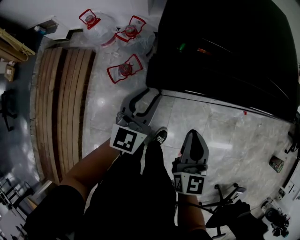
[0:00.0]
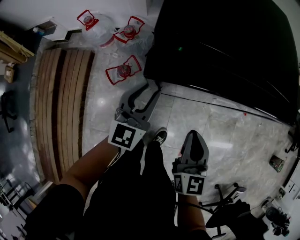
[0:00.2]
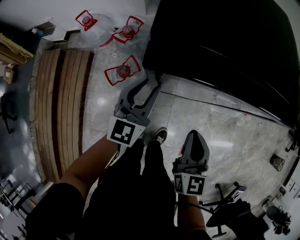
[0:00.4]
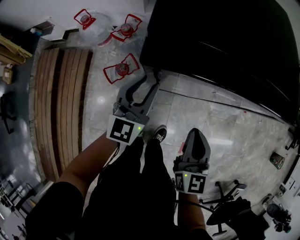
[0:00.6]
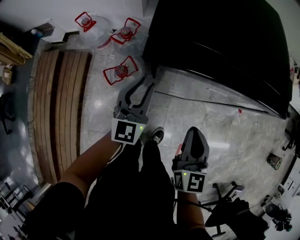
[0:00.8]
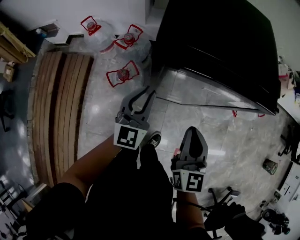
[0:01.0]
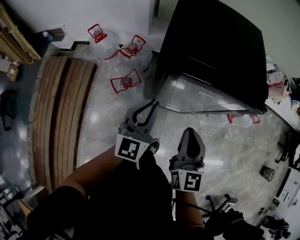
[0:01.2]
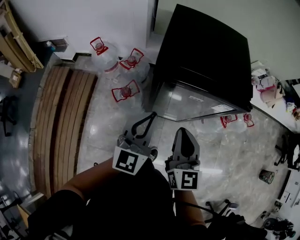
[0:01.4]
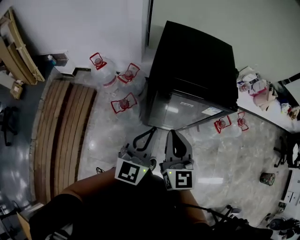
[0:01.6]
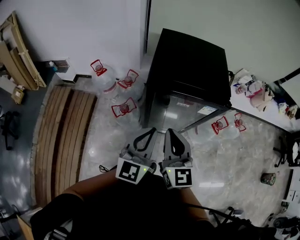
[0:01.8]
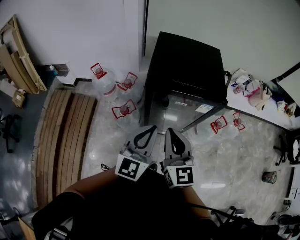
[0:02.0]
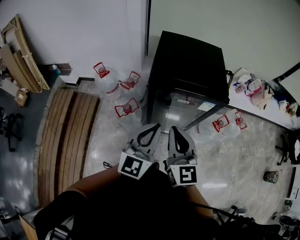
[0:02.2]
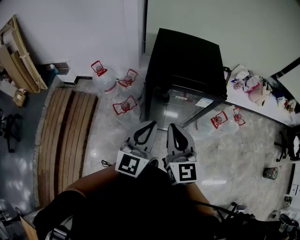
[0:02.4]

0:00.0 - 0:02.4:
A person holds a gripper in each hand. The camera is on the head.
0:00.0 - 0:01.2: The two grippers go approximately 10 cm upward.
0:01.2 - 0:02.4: The grippers both shift upward and backward by some 20 cm.

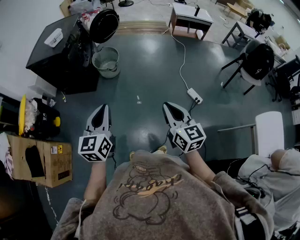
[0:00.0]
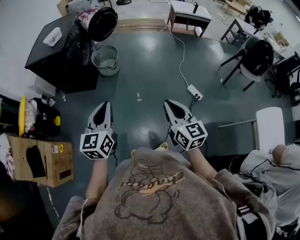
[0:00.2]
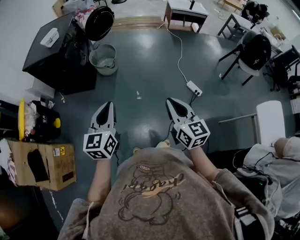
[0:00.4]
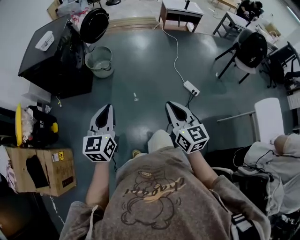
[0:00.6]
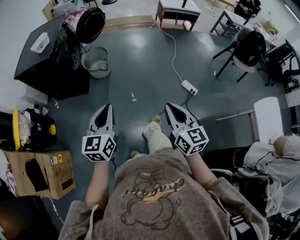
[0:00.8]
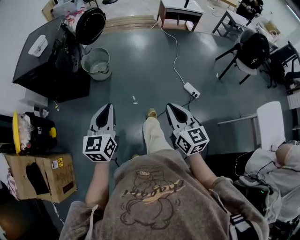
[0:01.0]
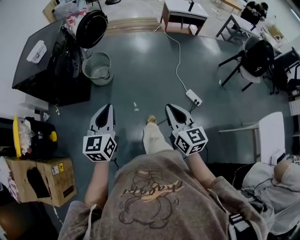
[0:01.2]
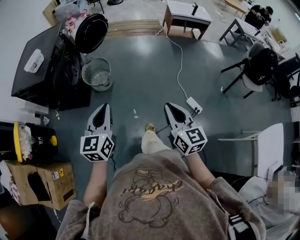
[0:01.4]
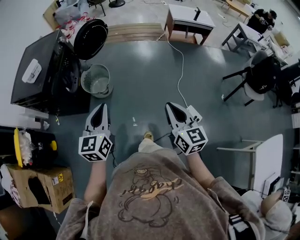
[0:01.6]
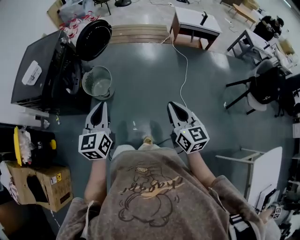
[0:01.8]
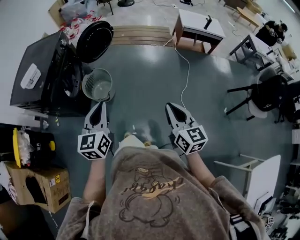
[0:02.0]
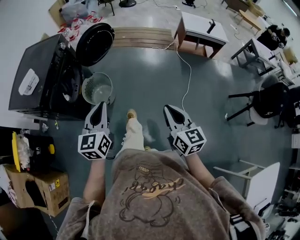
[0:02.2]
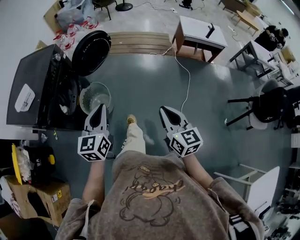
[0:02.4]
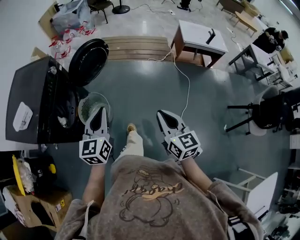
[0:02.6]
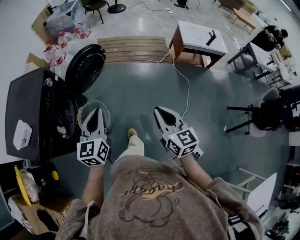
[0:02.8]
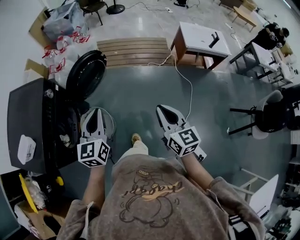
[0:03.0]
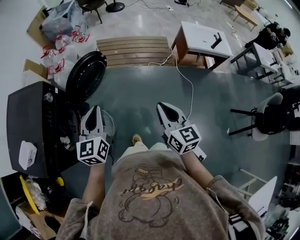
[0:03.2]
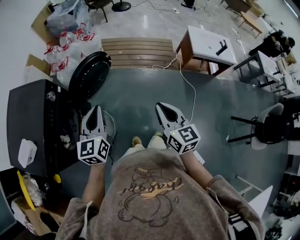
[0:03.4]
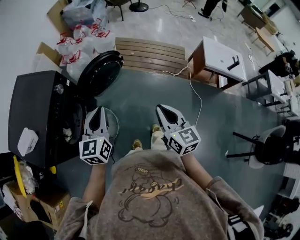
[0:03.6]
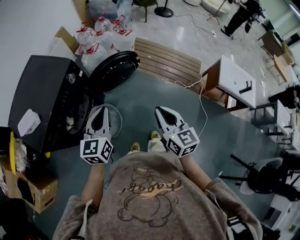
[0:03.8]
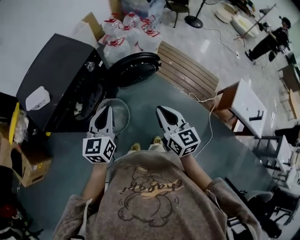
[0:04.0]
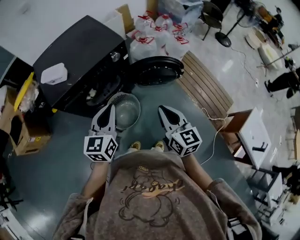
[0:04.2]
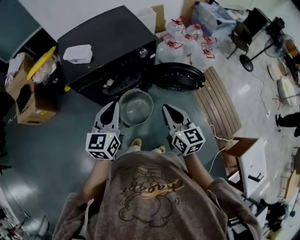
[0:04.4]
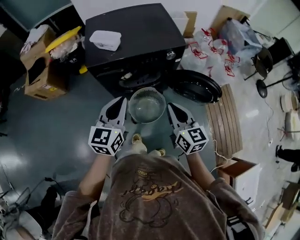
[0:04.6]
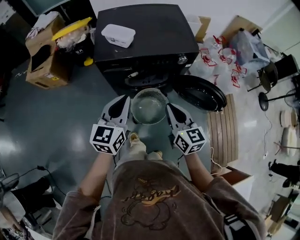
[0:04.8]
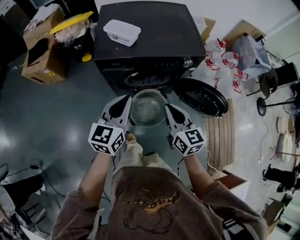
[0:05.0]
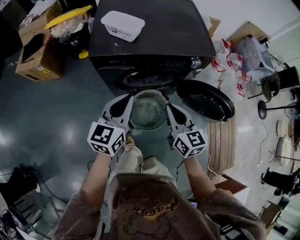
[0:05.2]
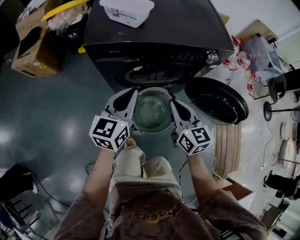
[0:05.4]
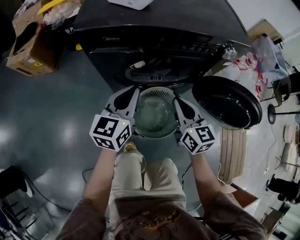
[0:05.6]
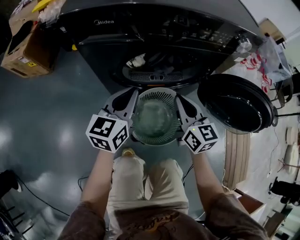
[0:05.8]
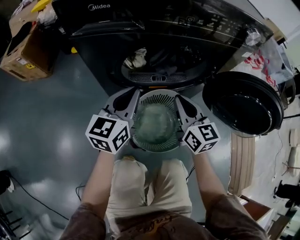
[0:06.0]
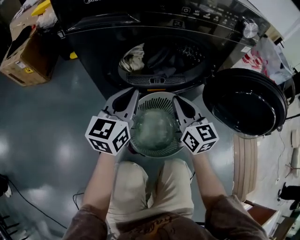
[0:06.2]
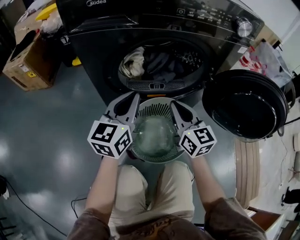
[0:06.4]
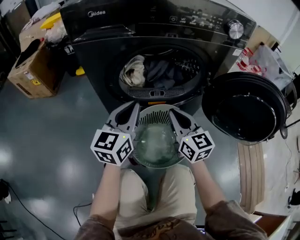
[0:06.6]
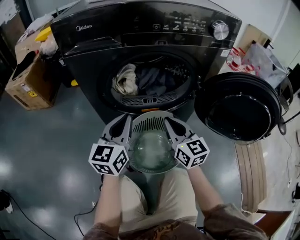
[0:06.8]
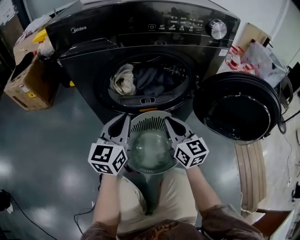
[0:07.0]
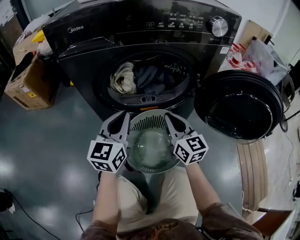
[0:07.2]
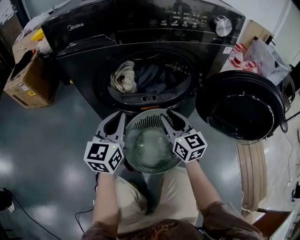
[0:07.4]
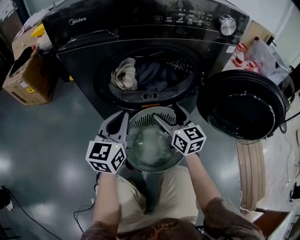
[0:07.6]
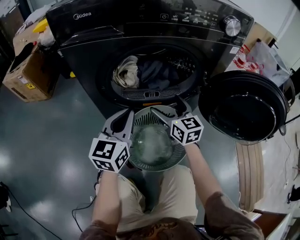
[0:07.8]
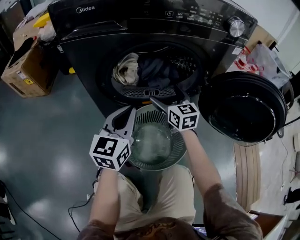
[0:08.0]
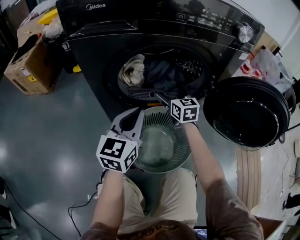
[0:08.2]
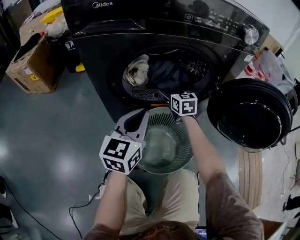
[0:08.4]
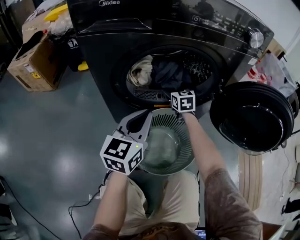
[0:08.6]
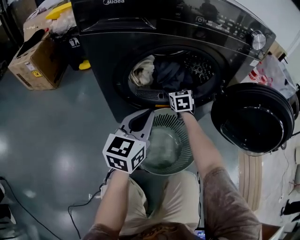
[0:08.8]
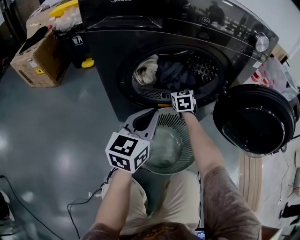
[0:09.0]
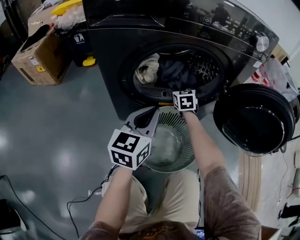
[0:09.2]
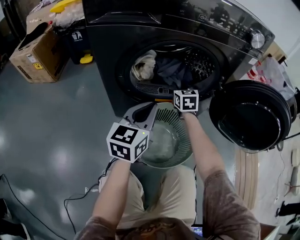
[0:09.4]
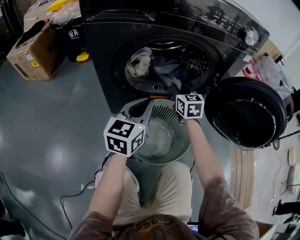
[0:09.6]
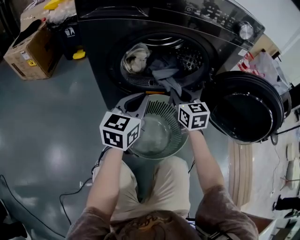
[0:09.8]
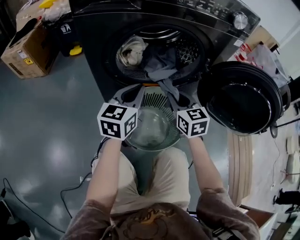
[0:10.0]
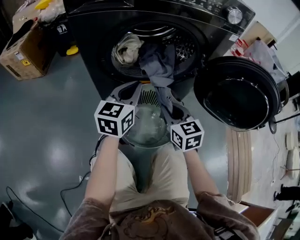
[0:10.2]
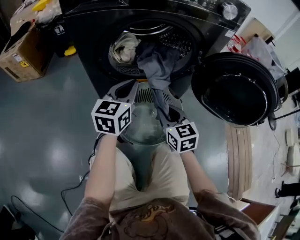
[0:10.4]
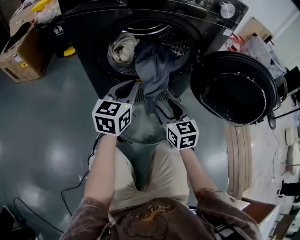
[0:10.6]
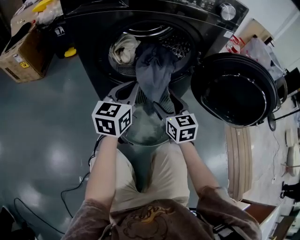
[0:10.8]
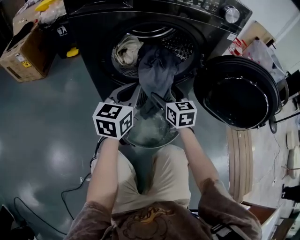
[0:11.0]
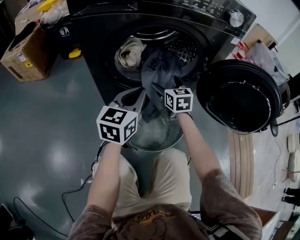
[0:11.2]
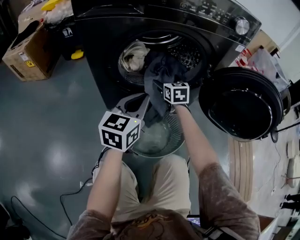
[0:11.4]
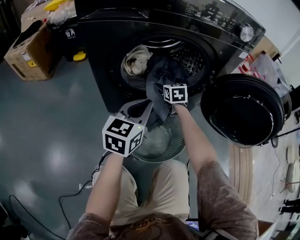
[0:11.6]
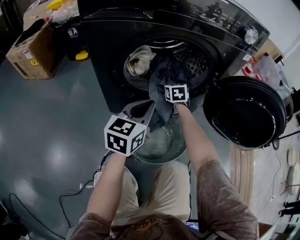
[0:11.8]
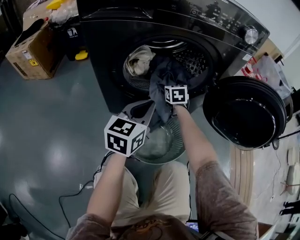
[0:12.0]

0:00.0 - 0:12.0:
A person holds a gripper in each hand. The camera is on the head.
0:00.0 - 0:01.6: The two grippers go about 30 cm forward.
0:01.6 - 0:03.0: Both grippers are carried forward, about 50 cm.
0:03.0 - 0:04.4: The left gripper changes place by some 15 cm, and changes its angle by some 60 degrees; the right gripper ends up about 30 cm from where it was, and changes its angle by roughly 60 degrees.
0:04.4 - 0:06.0: The right gripper goes approximately 50 cm downward and forward, and swivels about 20 degrees, while the left gripper moves downward, approximately 40 cm.
0:06.0 - 0:07.6: The grippers both shift downward by about 5 cm. The right gripper opens its fingers.
0:07.6 - 0:09.0: The right gripper goes approximately 20 cm forward and downward, rotates some 30 degrees, and closes its fingers.
0:09.0 - 0:10.4: The right gripper moves backward, about 30 cm.
0:10.4 - 0:12.0: The right gripper travels forward by some 25 cm, and opens up.

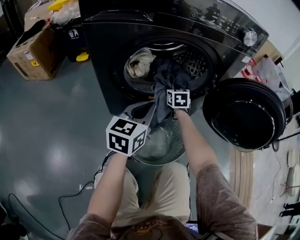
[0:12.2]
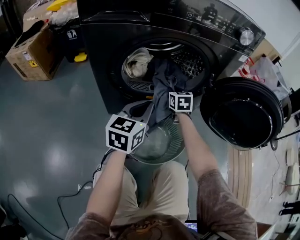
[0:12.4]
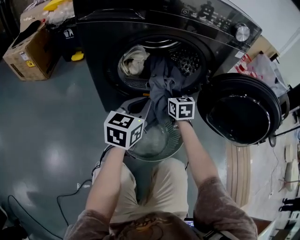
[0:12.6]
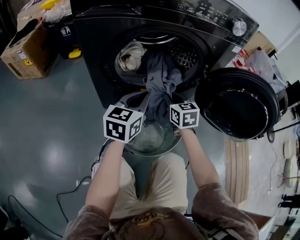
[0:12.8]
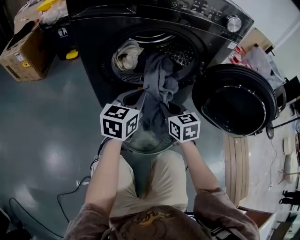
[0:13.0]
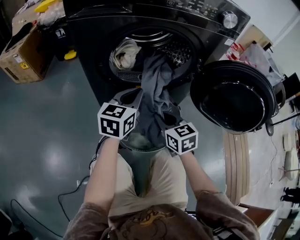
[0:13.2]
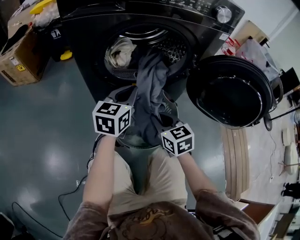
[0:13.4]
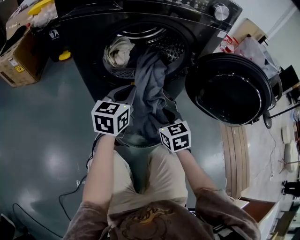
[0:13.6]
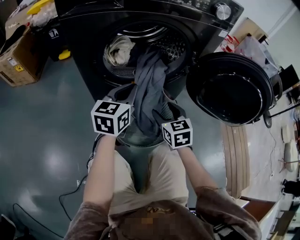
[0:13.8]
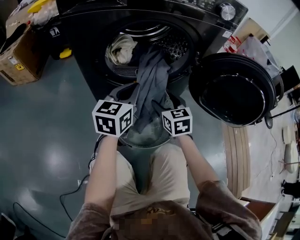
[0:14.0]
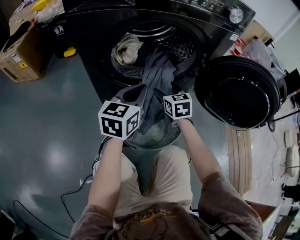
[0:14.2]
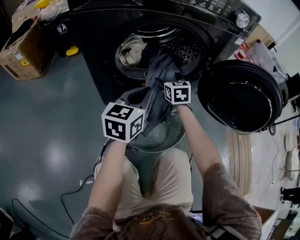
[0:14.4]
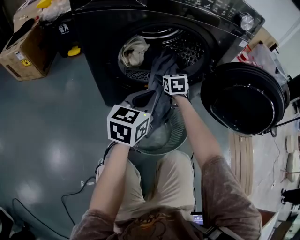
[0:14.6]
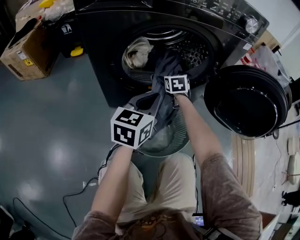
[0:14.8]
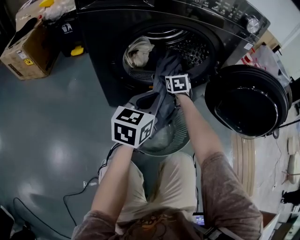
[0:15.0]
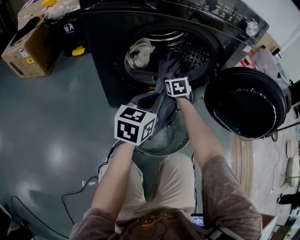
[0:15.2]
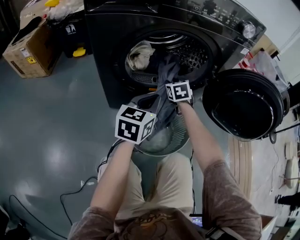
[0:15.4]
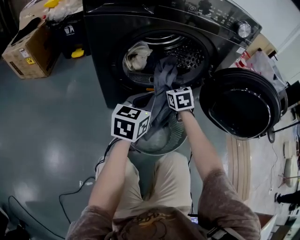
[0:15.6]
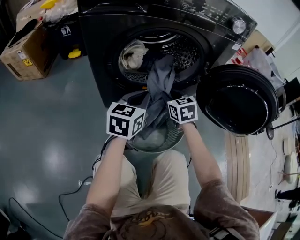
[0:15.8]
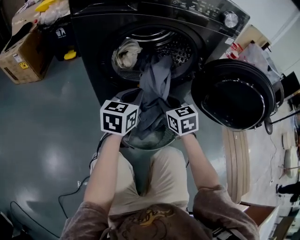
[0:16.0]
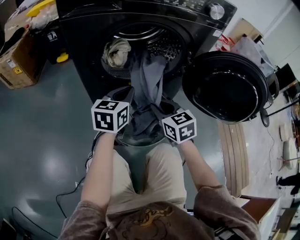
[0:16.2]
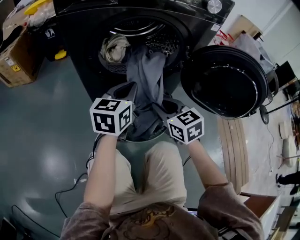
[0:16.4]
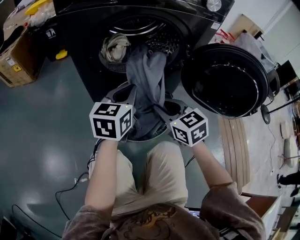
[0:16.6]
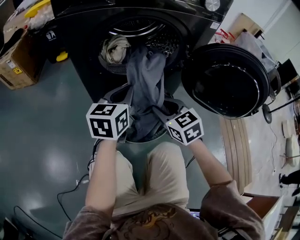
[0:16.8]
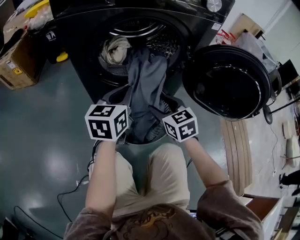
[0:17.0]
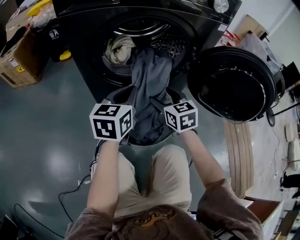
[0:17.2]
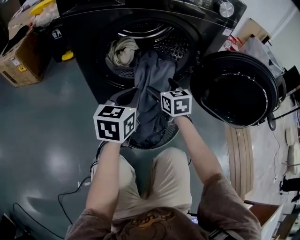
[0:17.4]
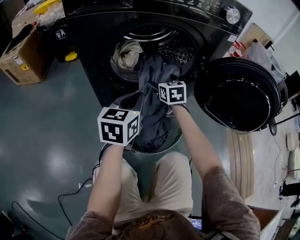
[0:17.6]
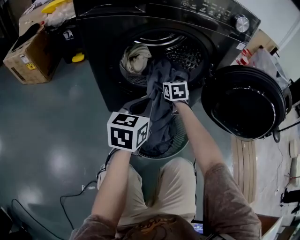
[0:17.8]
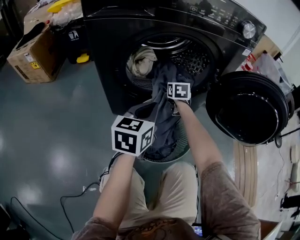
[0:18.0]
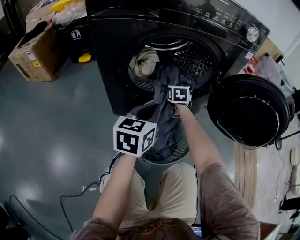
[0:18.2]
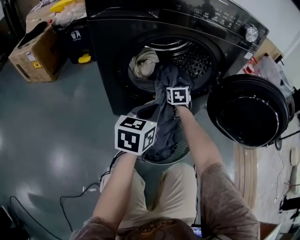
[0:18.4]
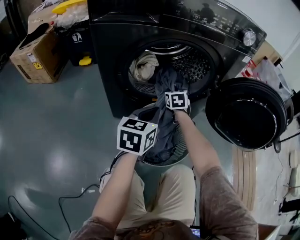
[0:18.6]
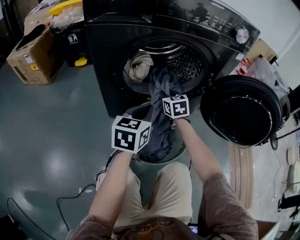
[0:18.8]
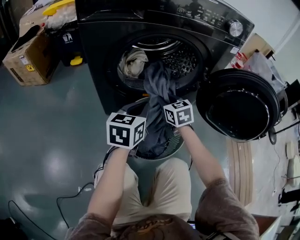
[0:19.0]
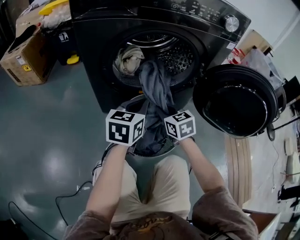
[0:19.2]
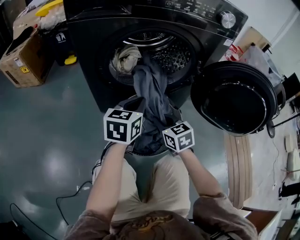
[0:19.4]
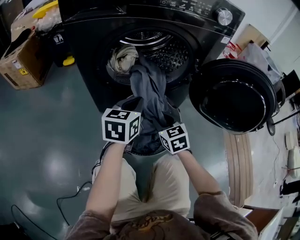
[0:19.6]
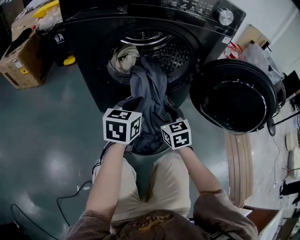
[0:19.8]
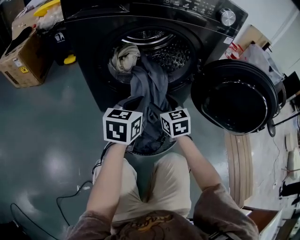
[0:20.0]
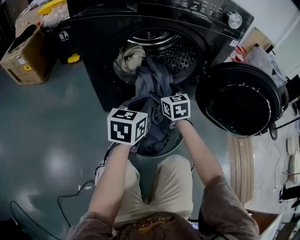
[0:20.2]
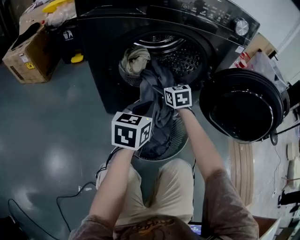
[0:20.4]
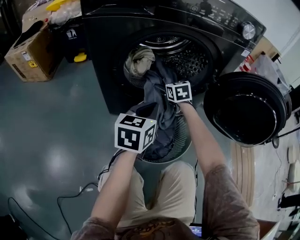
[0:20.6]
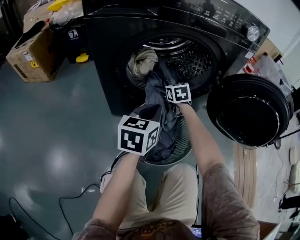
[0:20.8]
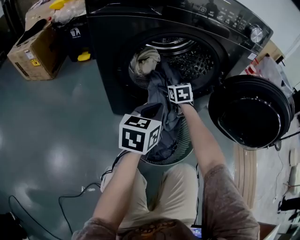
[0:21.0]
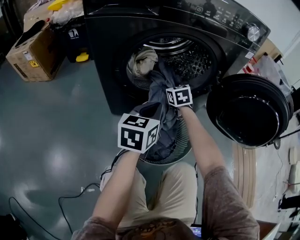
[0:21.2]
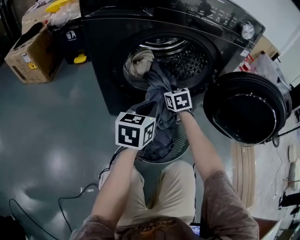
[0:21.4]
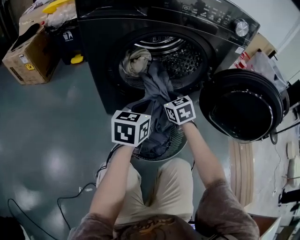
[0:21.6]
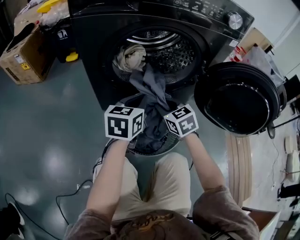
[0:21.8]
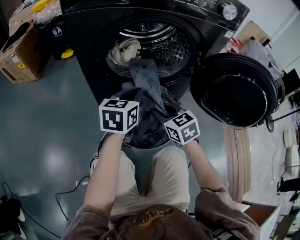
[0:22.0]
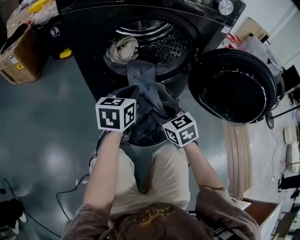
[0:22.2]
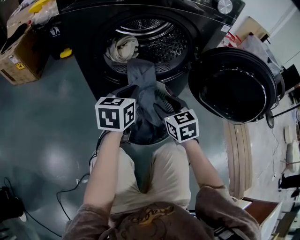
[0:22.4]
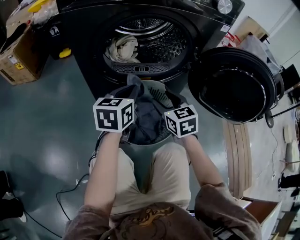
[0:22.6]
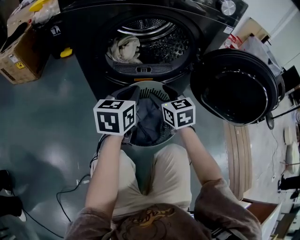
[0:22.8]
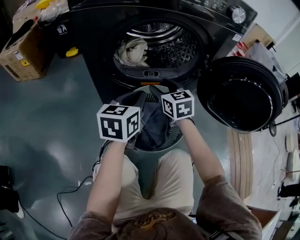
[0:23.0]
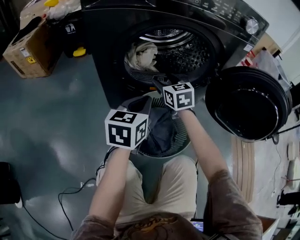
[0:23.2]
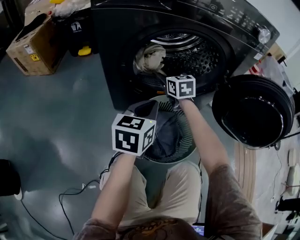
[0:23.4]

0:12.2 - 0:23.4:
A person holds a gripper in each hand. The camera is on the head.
0:12.2 - 0:13.8: The right gripper travels backward by approximately 25 cm.
0:13.8 - 0:15.4: The right gripper shifts some 20 cm forward, and closes its fingers.
0:15.4 - 0:17.0: The right gripper shifts about 20 cm backward.
0:17.0 - 0:18.6: The right gripper heads forward, covering roughly 20 cm, and closes.
0:18.6 - 0:20.2: The right gripper is displaced backward by about 10 cm, and opens its fingers.
0:20.2 - 0:21.8: The right gripper goes roughly 10 cm backward, and closes its fingers.
0:21.8 - 0:23.4: The right gripper heads forward, covering approximately 20 cm, and opens.
